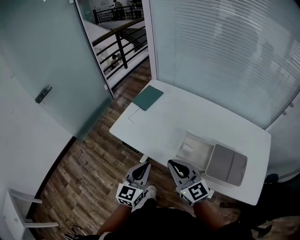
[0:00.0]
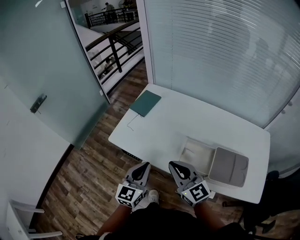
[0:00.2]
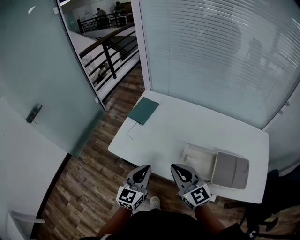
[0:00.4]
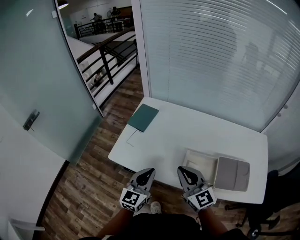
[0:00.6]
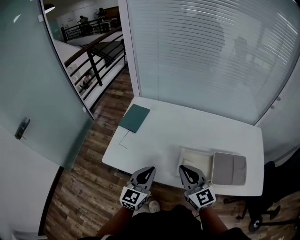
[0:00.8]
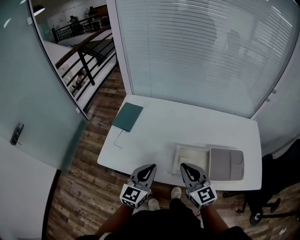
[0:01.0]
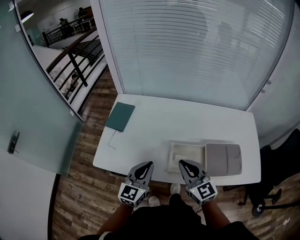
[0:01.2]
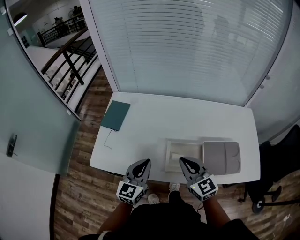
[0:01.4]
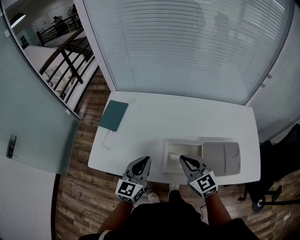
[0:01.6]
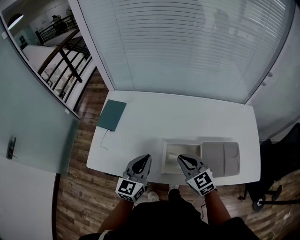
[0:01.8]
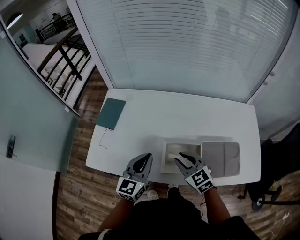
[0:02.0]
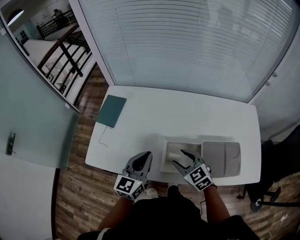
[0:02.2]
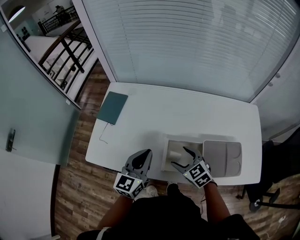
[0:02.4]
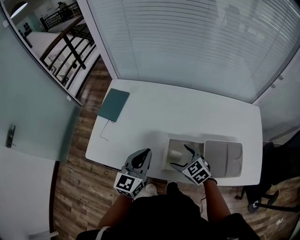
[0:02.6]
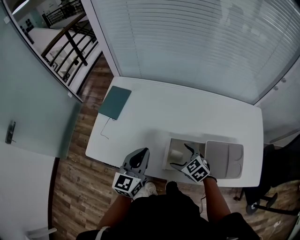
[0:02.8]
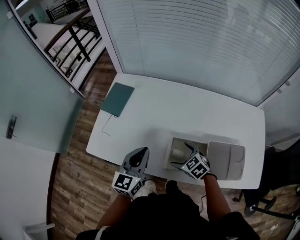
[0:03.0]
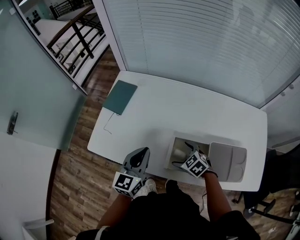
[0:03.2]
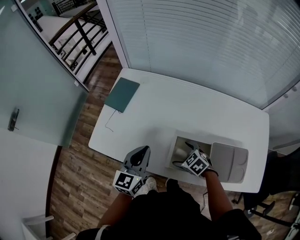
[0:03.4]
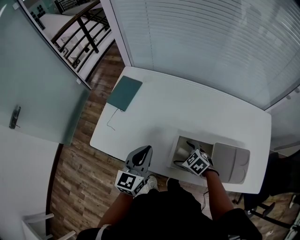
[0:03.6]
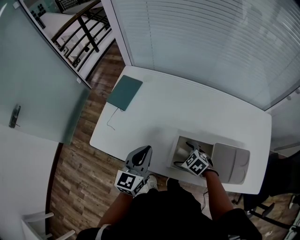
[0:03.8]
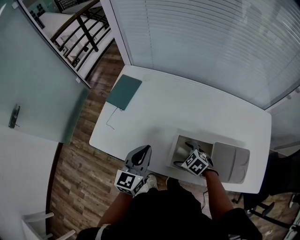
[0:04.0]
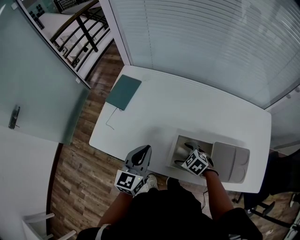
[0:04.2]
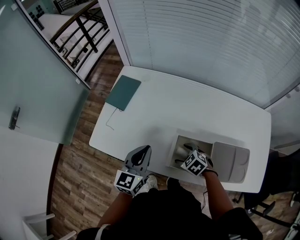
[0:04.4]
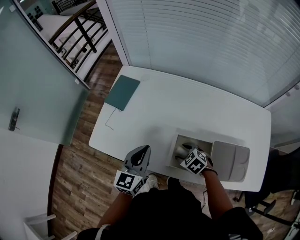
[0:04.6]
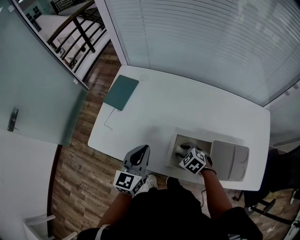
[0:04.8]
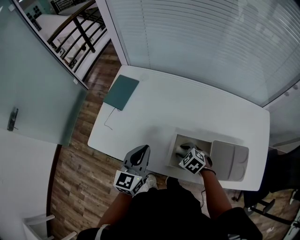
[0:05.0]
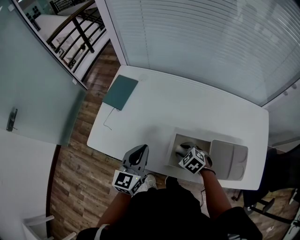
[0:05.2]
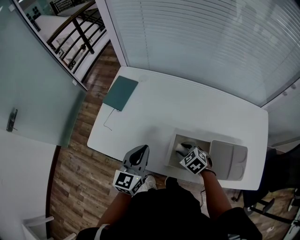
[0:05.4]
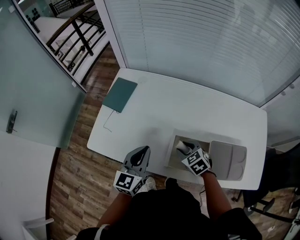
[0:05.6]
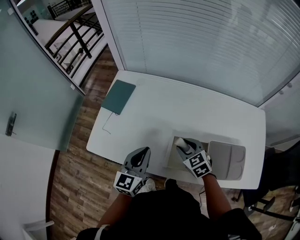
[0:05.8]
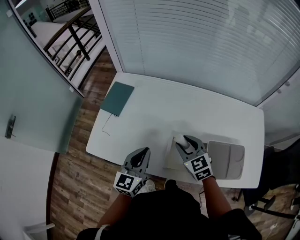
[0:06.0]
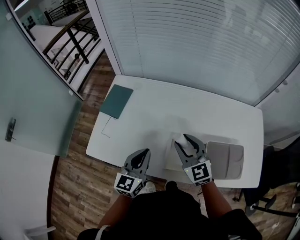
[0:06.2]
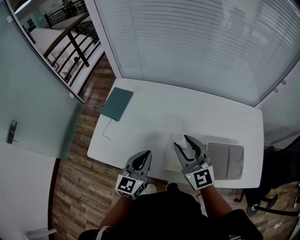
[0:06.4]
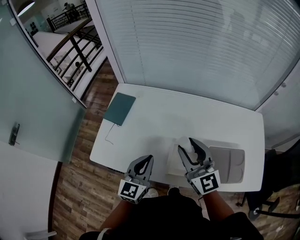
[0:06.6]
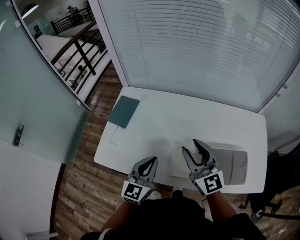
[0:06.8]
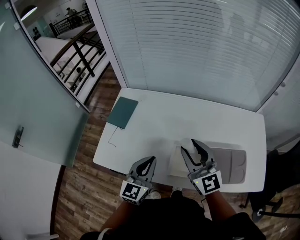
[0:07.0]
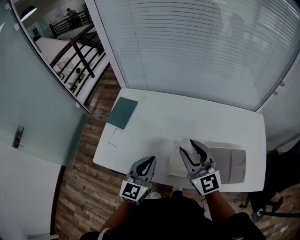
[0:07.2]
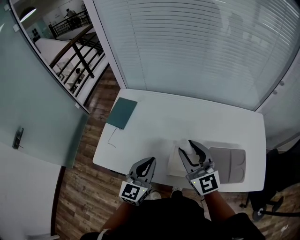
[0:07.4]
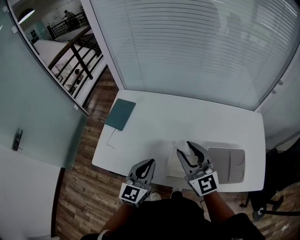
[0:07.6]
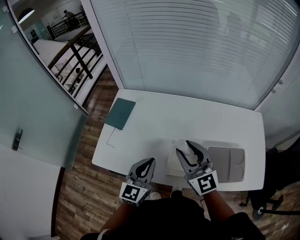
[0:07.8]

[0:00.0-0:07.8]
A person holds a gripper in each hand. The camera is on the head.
0:00.0 to 0:01.6: The right gripper moves forward, to the right and downward, some 15 cm, and changes its angle by some 30 degrees. The left gripper travels forward by about 15 cm, and changes its angle by some 20 degrees.
0:01.6 to 0:03.2: The right gripper goes about 20 cm downward, points its fingers approximately 40 degrees further downward, and opens up.
0:03.2 to 0:04.6: The right gripper closes its fingers.
0:04.6 to 0:06.2: The right gripper is displaced upward by roughly 20 cm, and points its fingers some 50 degrees further upward.
0:06.2 to 0:07.8: The right gripper shifts roughly 10 cm upward.

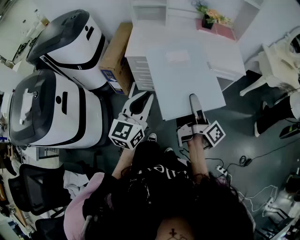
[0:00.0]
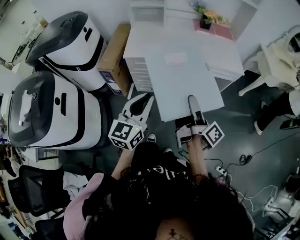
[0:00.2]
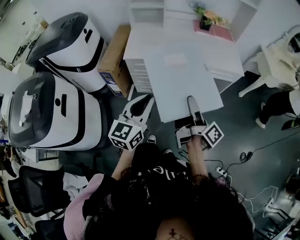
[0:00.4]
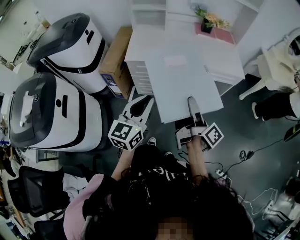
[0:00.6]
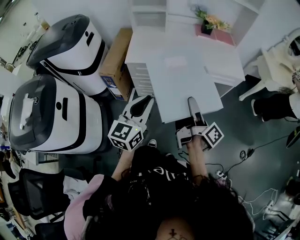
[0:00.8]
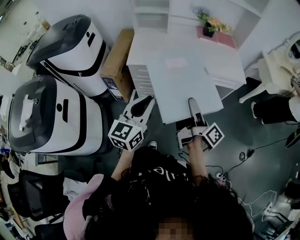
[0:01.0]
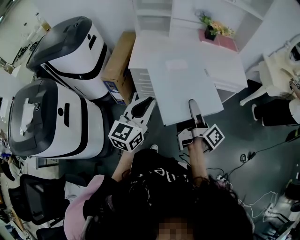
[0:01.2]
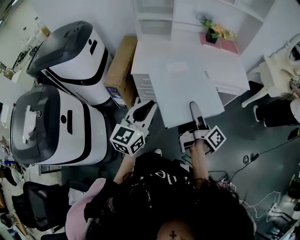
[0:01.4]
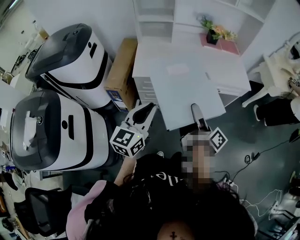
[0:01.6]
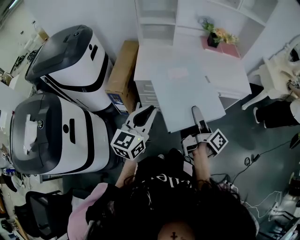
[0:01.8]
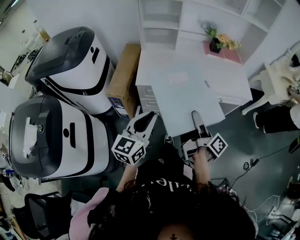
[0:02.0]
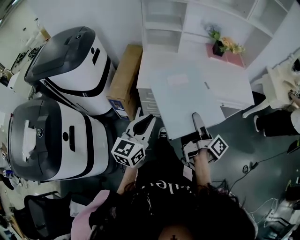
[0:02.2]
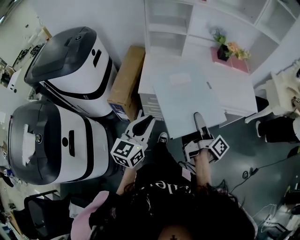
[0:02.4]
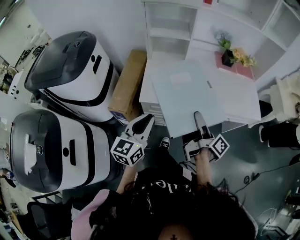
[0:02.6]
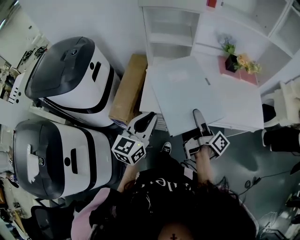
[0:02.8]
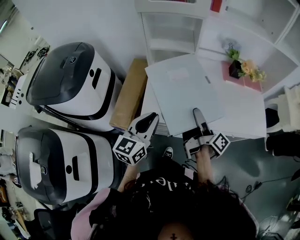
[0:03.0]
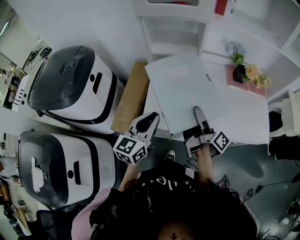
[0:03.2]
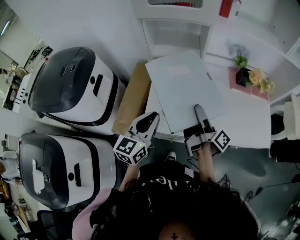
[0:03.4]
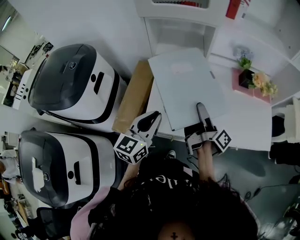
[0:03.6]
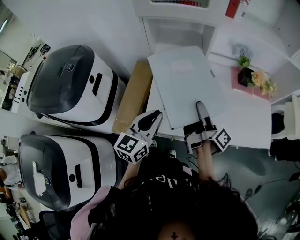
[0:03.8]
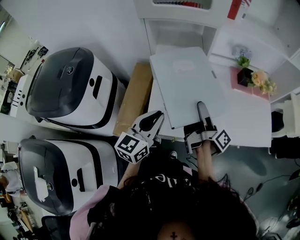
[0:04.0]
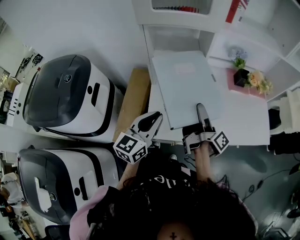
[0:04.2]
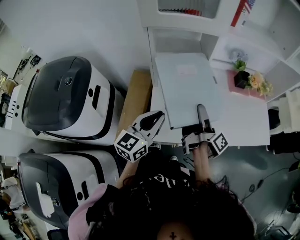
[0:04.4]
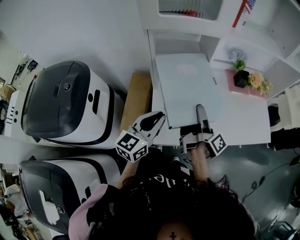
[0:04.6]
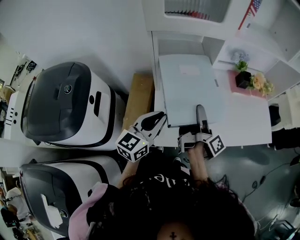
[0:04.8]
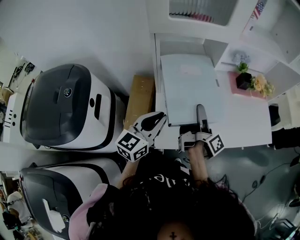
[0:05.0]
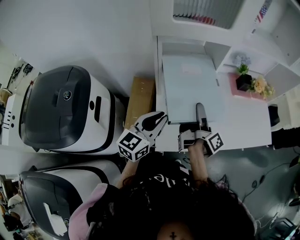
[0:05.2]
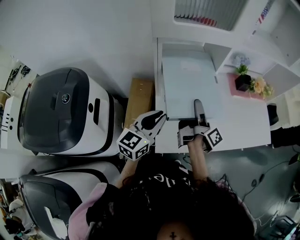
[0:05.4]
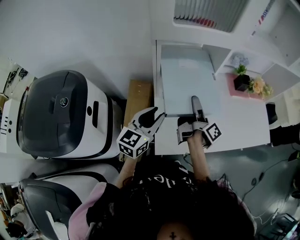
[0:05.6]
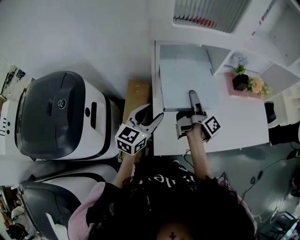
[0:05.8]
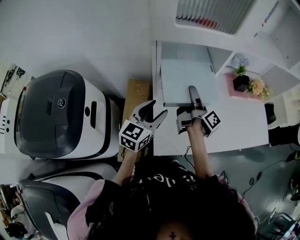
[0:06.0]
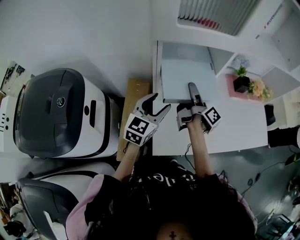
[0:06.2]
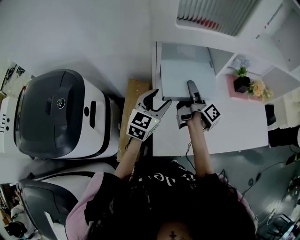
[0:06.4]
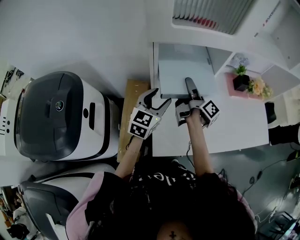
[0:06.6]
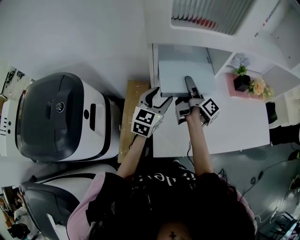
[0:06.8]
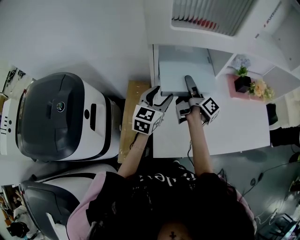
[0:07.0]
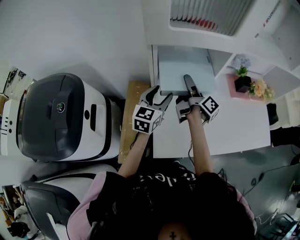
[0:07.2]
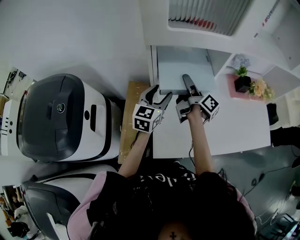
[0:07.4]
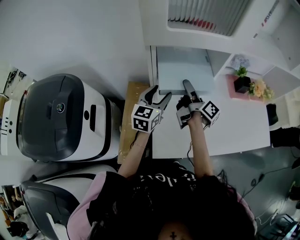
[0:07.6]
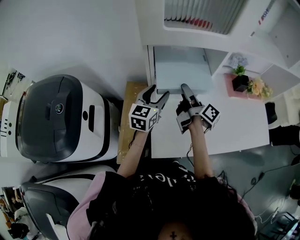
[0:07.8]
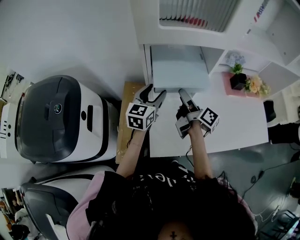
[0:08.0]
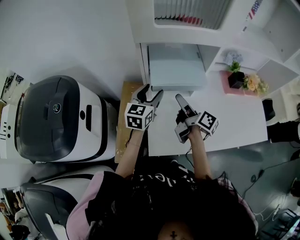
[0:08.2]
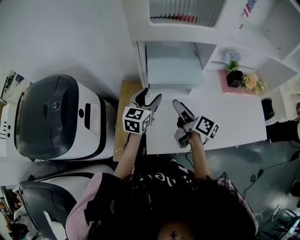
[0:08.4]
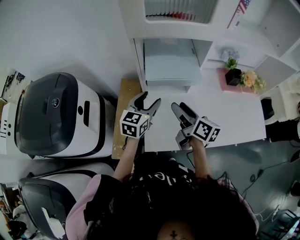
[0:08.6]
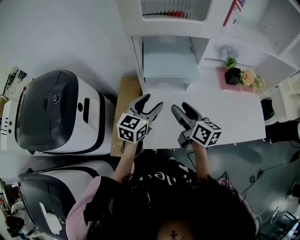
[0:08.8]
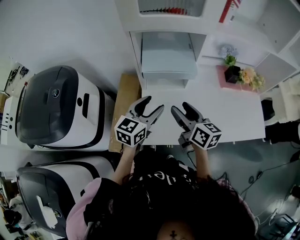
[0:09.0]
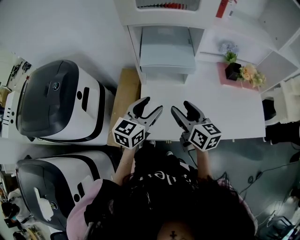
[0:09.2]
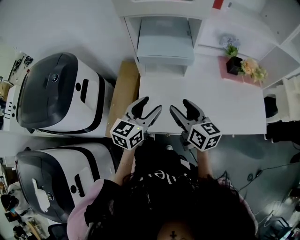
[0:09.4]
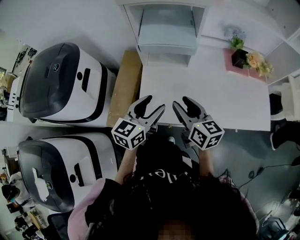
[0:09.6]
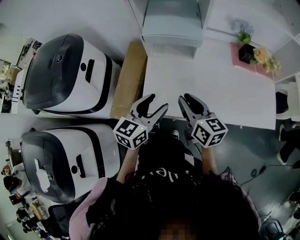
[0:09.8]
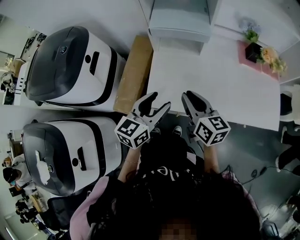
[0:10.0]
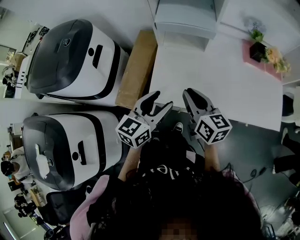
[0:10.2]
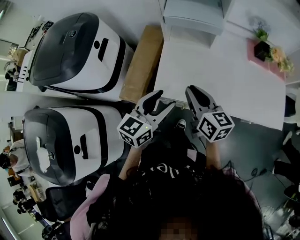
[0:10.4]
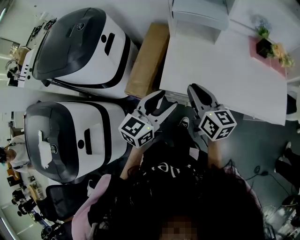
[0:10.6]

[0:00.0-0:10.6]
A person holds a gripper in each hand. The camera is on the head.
0:00.0 to 0:01.6: Both grippers travel together to the left and forward, about 10 cm.
0:01.6 to 0:03.0: The two grippers go some 35 cm forward.
0:03.0 to 0:04.6: The grippers both shift forward and to the left by some 15 cm.
0:04.6 to 0:06.0: Both grippers move forward and to the left, approximately 15 cm. The left gripper opens up.
0:06.0 to 0:07.6: The left gripper is displaced forward by about 10 cm. Meanwhile the right gripper moves roughly 5 cm.
0:07.6 to 0:09.0: Both grippers move backward, some 15 cm. The right gripper rolls counterclockwise, seen from behind, by about 50 degrees.
0:09.0 to 0:10.6: The grippers both shift backward by approximately 20 cm. The right gripper closes up.

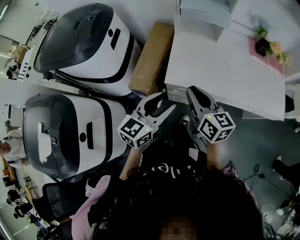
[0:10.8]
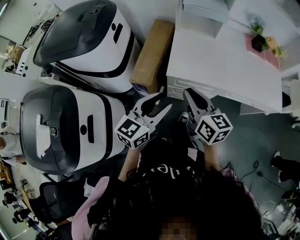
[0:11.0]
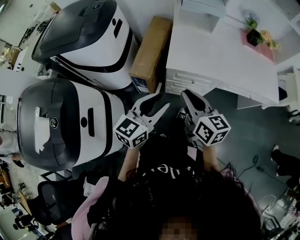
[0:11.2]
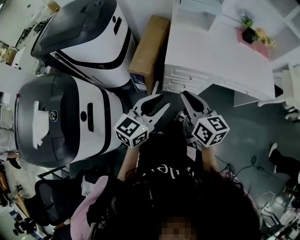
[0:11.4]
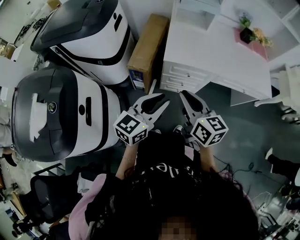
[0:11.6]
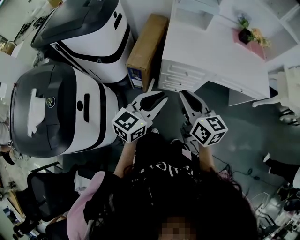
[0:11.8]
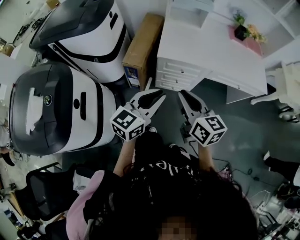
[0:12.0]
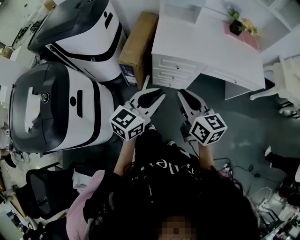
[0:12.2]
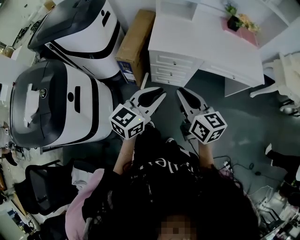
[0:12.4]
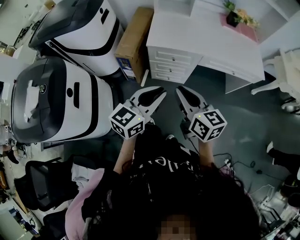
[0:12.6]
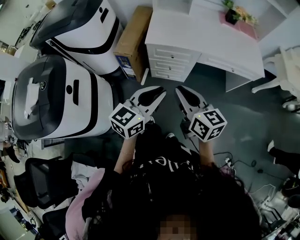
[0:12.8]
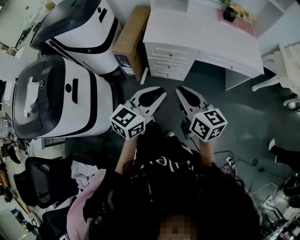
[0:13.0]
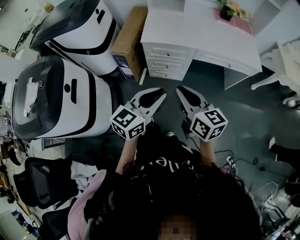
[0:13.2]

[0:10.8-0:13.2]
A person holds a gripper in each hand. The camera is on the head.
0:10.8 to 0:12.0: The grippers both shift backward by approximately 25 cm. The left gripper closes its fingers.
0:12.0 to 0:13.2: The grippers both shift to the right and backward by approximately 20 cm.

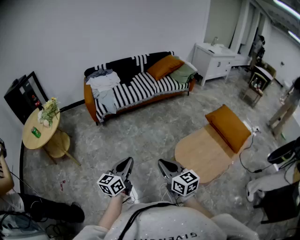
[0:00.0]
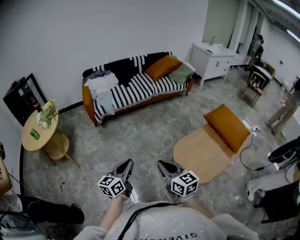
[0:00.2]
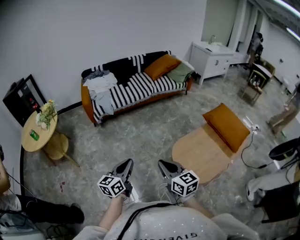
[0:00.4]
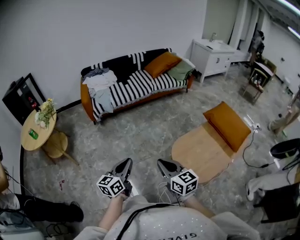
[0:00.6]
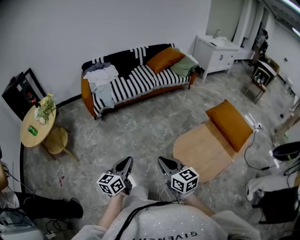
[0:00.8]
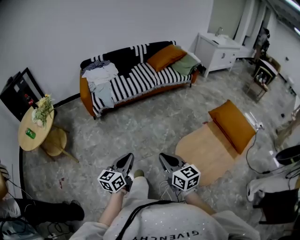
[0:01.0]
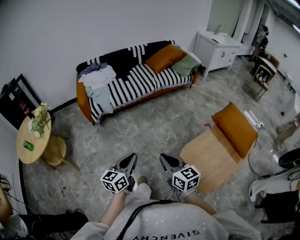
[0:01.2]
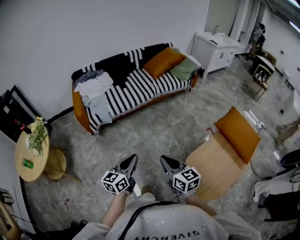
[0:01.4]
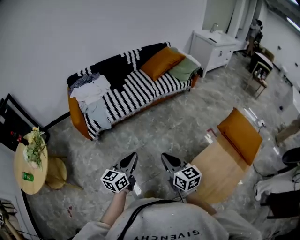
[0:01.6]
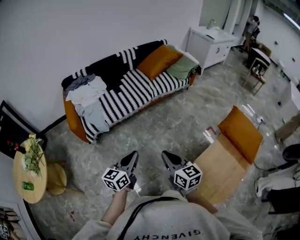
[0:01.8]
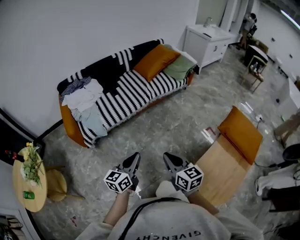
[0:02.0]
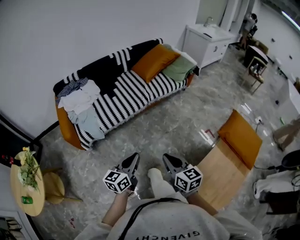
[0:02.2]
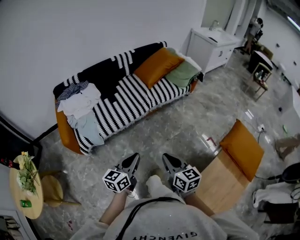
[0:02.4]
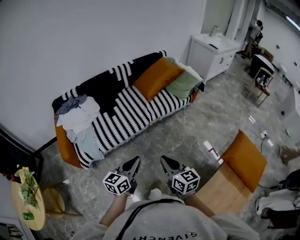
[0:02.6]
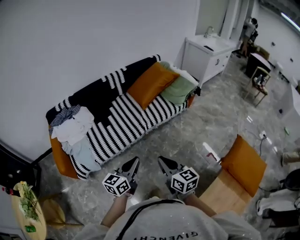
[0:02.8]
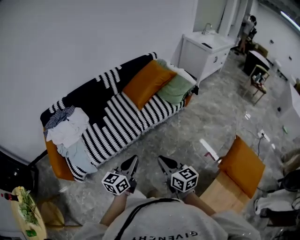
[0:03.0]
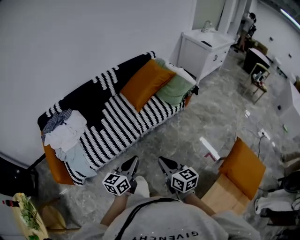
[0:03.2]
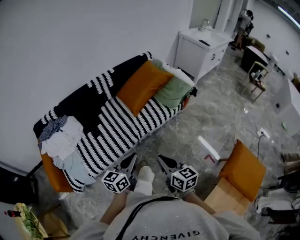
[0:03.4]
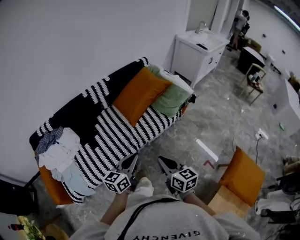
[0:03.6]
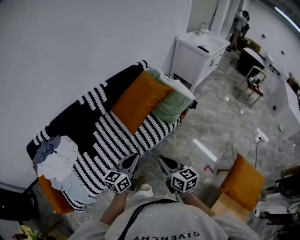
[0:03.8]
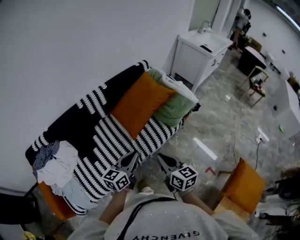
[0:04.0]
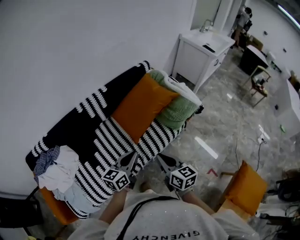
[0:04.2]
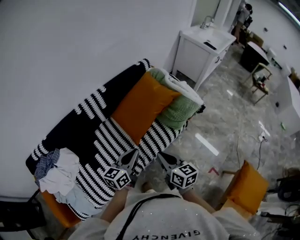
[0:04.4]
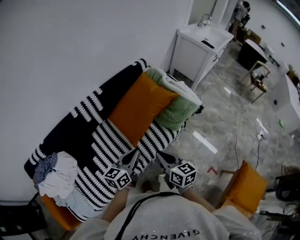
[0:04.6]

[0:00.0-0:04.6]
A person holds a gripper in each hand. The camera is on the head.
0:00.0 to 0:01.6: Both grippers move forward, approximately 35 cm.
0:01.6 to 0:03.0: The two grippers travel together, forward, about 40 cm.
0:03.0 to 0:04.6: Both grippers are carried forward, roughly 40 cm.
